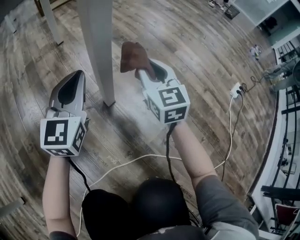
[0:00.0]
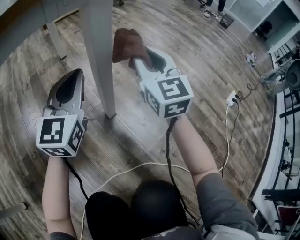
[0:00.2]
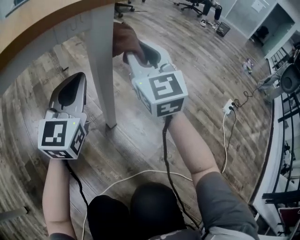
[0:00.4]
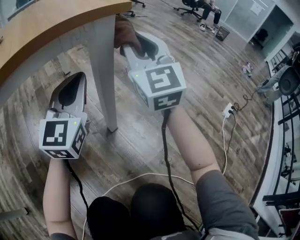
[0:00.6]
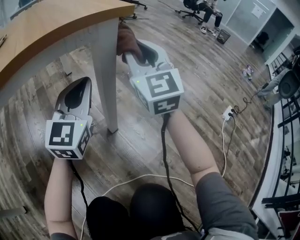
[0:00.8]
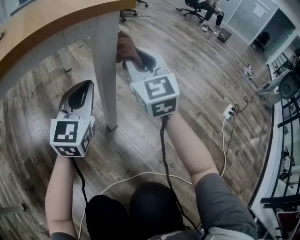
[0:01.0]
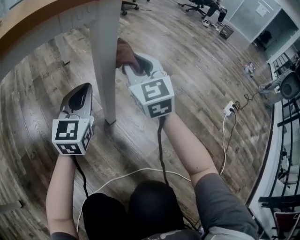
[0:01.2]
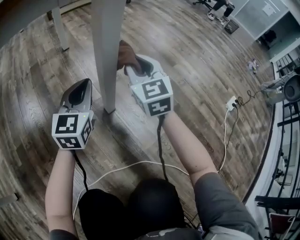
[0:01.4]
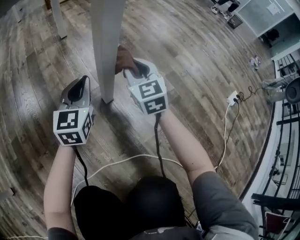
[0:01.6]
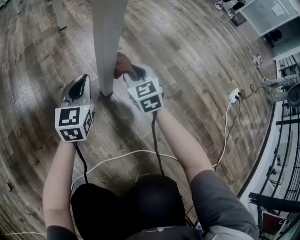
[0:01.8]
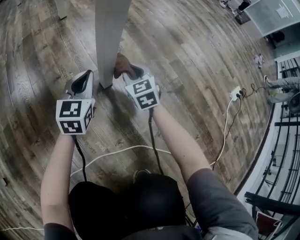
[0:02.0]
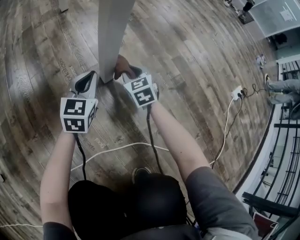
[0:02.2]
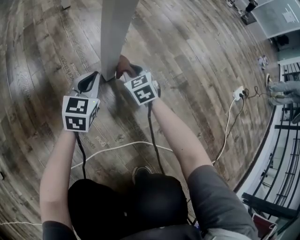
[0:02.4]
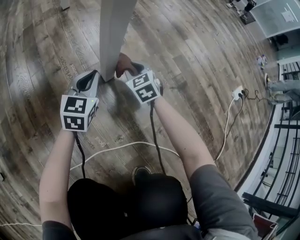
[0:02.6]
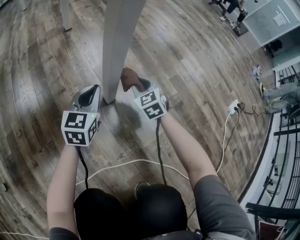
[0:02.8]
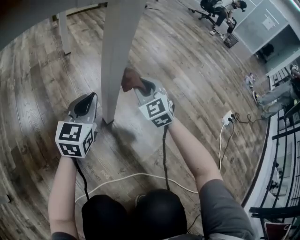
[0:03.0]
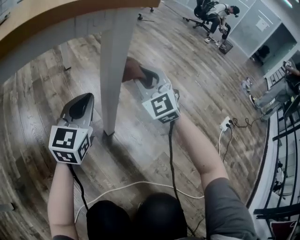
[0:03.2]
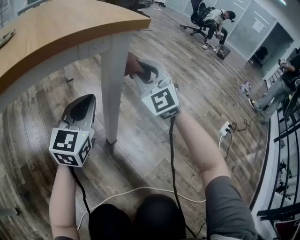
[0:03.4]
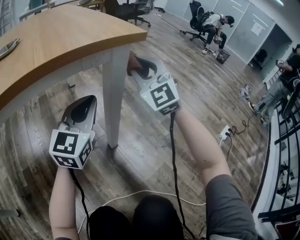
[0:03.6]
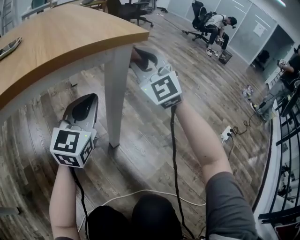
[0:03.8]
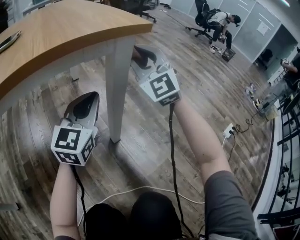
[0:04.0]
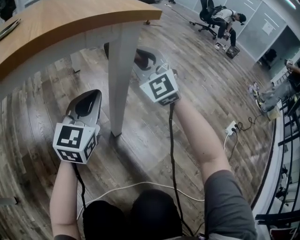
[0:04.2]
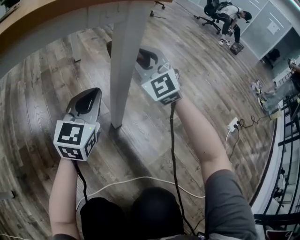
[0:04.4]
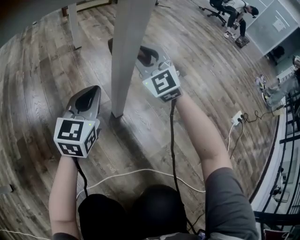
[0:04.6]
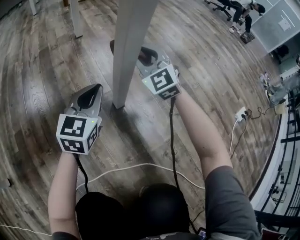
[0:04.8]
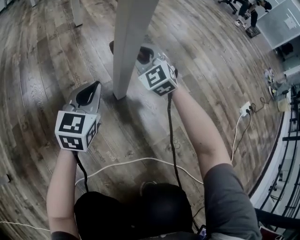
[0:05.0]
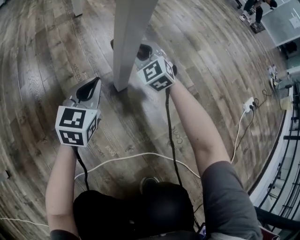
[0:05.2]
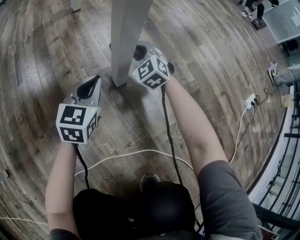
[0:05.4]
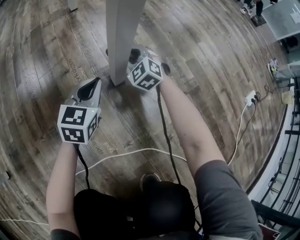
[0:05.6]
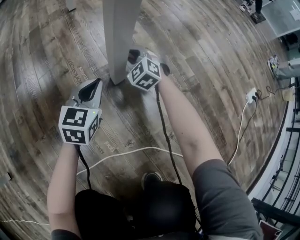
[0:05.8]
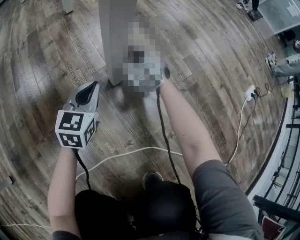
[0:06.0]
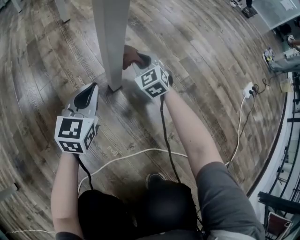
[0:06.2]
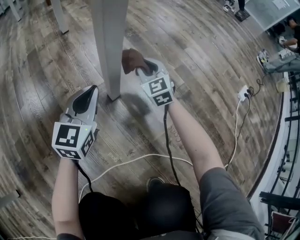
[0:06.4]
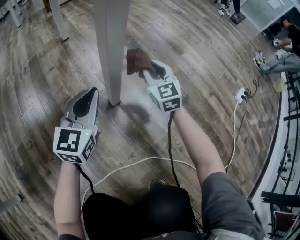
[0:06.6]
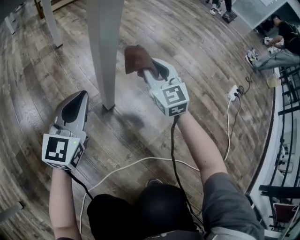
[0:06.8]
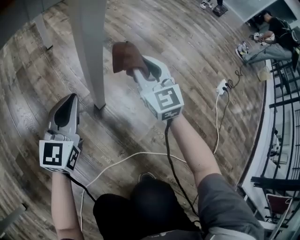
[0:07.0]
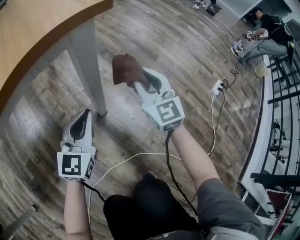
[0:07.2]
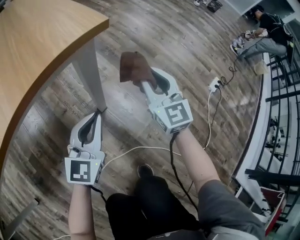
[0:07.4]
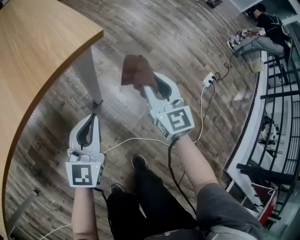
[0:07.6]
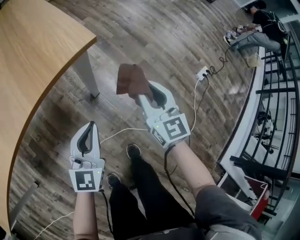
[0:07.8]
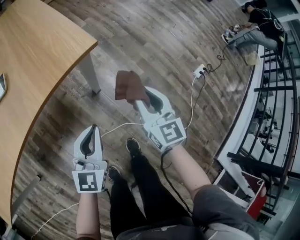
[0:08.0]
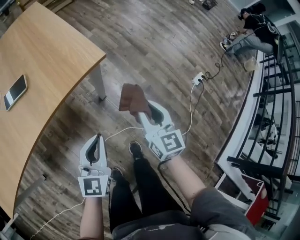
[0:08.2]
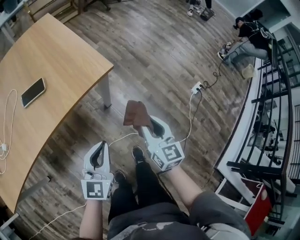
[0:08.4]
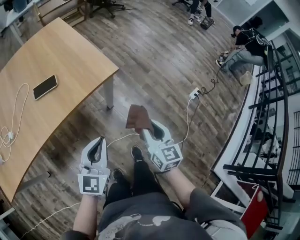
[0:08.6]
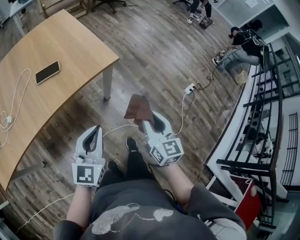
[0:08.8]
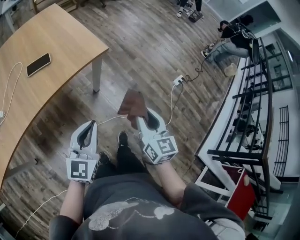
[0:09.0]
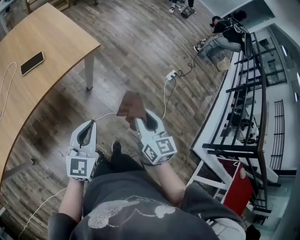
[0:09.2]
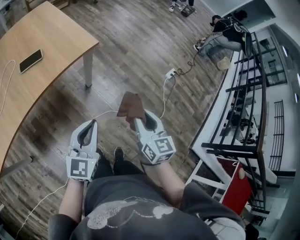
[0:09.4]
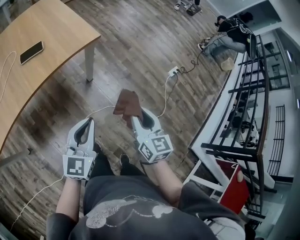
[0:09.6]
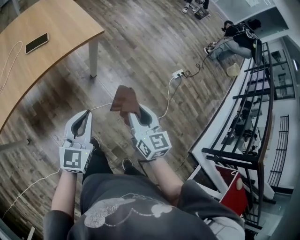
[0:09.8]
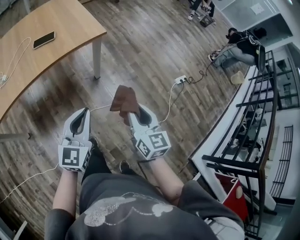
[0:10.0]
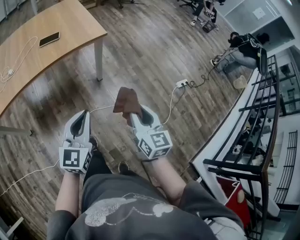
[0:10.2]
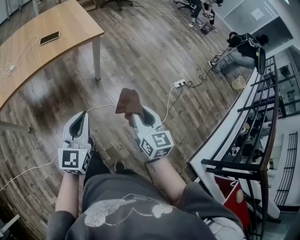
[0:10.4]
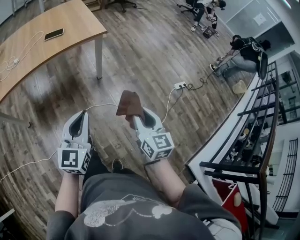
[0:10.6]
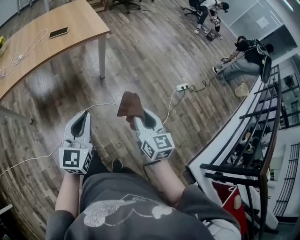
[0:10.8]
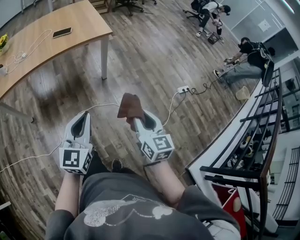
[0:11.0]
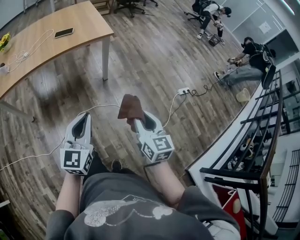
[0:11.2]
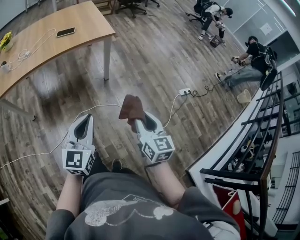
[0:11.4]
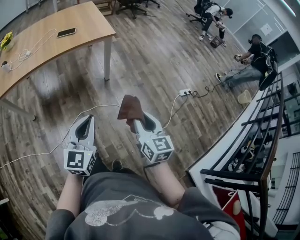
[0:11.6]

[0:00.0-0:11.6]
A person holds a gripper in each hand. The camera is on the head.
0:00.0 to 0:01.4: The right gripper moves to the left, about 5 cm, and travels upward and back again, about 25 cm each way. Meanwhile the left gripper reaches some 15 cm upward, then returns.
0:01.4 to 0:02.8: The left gripper moves downward, about 15 cm; the right gripper moves downward, about 25 cm, and rotates approximately 30 degrees.
0:02.8 to 0:04.4: The right gripper is displaced upward by about 30 cm, and tips its fingers upward by roughly 30 degrees; the left gripper is displaced upward by some 20 cm.
0:04.4 to 0:05.8: The left gripper goes about 25 cm downward, and changes its angle by approximately 20 degrees. The right gripper heads downward, covering roughly 35 cm, and angles its fingers downward, by about 30 degrees.
0:05.8 to 0:07.2: Both grippers move upward, about 30 cm. The right gripper points its fingers approximately 30 degrees further upward.
0:07.2 to 0:08.8: Both grippers move upward and backward, about 50 cm. The right gripper turns by about 20 degrees.
0:08.8 to 0:10.2: The two grippers go approximately 20 cm backward and to the right.
0:10.2 to 0:11.6: Both grippers travel together backward, some 15 cm.

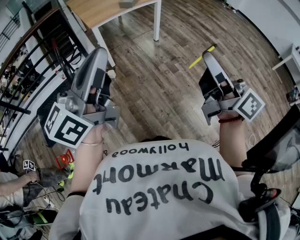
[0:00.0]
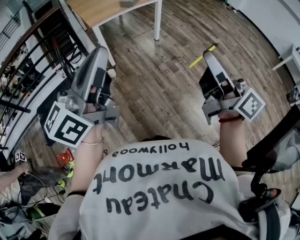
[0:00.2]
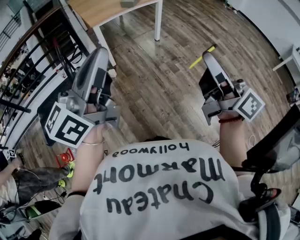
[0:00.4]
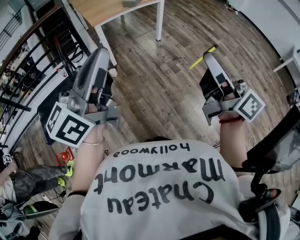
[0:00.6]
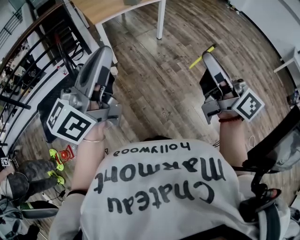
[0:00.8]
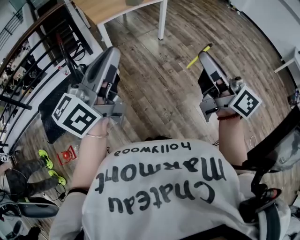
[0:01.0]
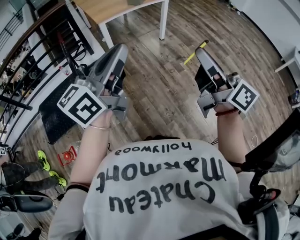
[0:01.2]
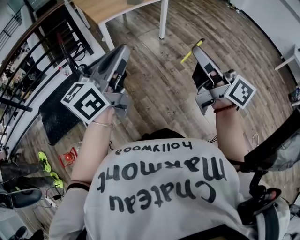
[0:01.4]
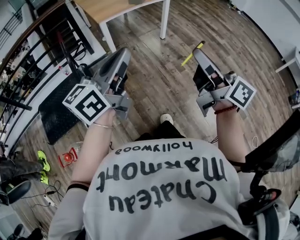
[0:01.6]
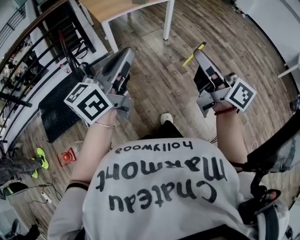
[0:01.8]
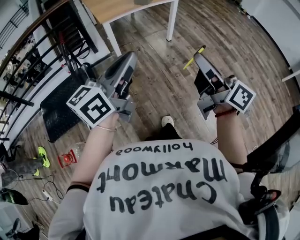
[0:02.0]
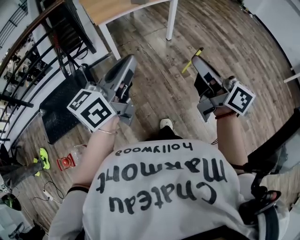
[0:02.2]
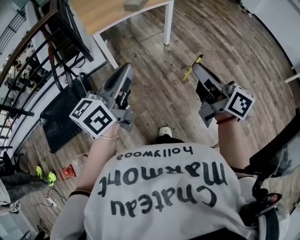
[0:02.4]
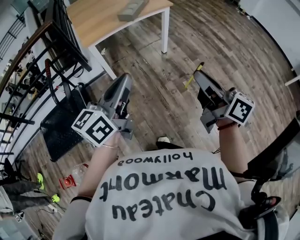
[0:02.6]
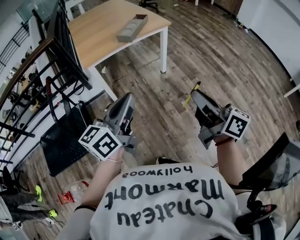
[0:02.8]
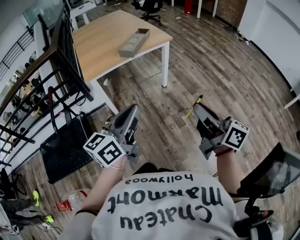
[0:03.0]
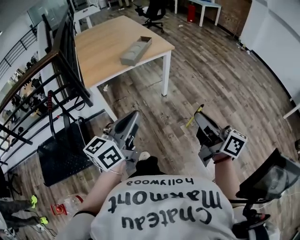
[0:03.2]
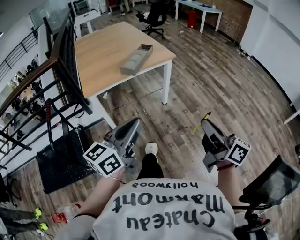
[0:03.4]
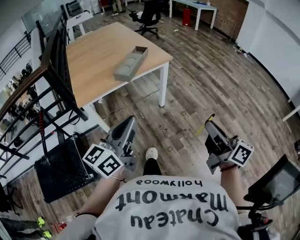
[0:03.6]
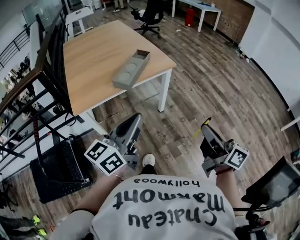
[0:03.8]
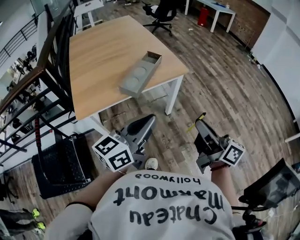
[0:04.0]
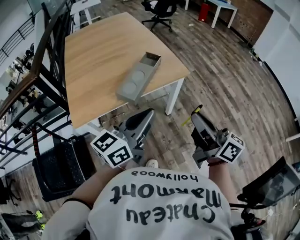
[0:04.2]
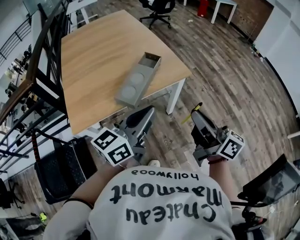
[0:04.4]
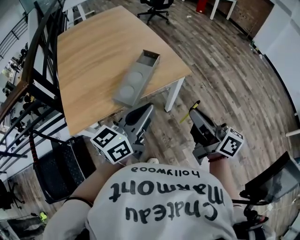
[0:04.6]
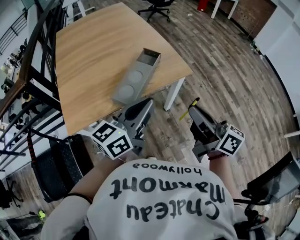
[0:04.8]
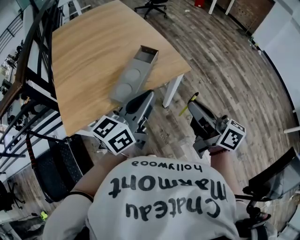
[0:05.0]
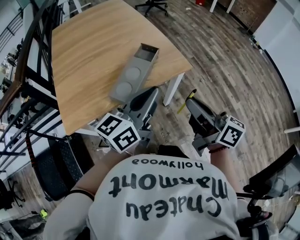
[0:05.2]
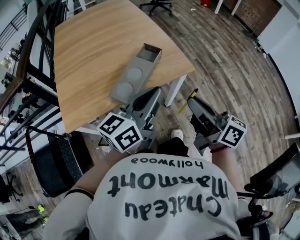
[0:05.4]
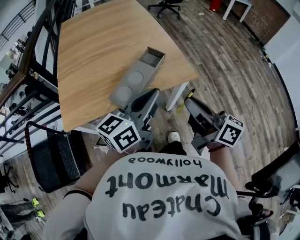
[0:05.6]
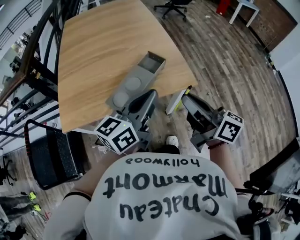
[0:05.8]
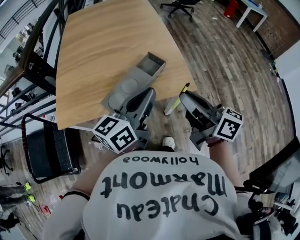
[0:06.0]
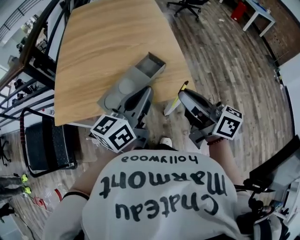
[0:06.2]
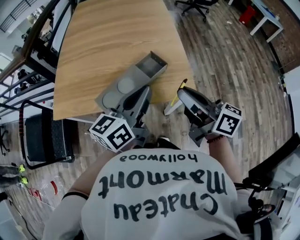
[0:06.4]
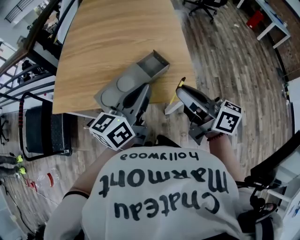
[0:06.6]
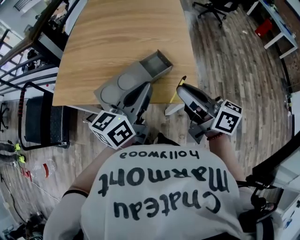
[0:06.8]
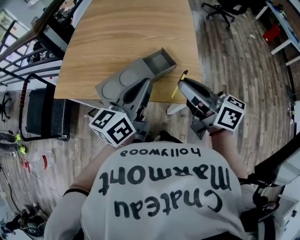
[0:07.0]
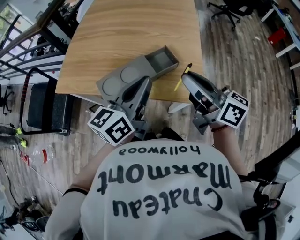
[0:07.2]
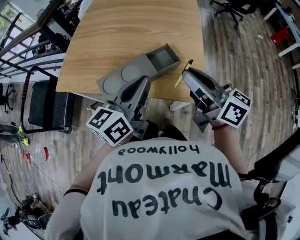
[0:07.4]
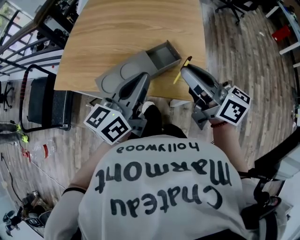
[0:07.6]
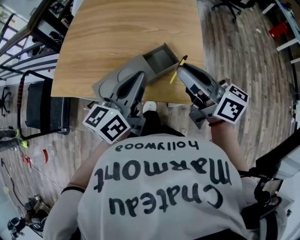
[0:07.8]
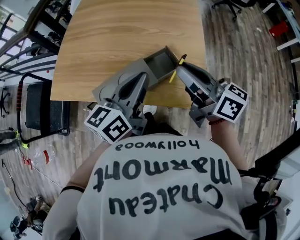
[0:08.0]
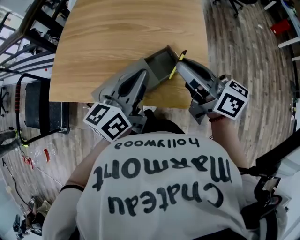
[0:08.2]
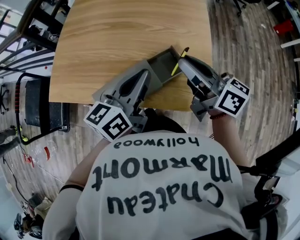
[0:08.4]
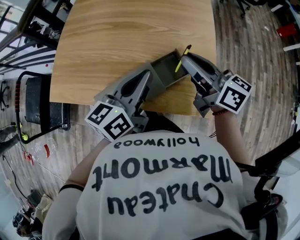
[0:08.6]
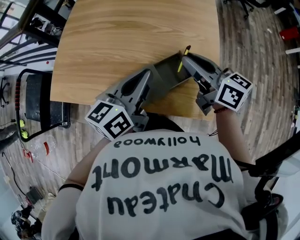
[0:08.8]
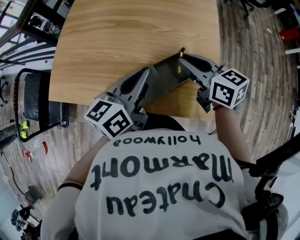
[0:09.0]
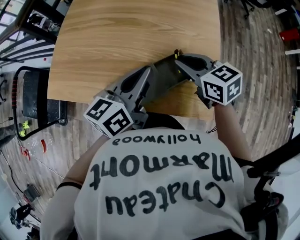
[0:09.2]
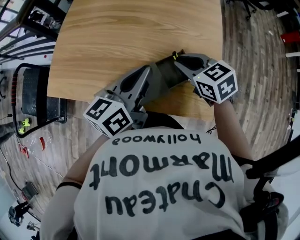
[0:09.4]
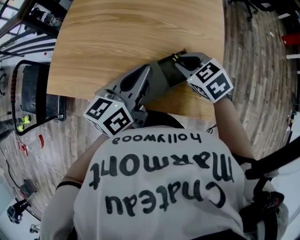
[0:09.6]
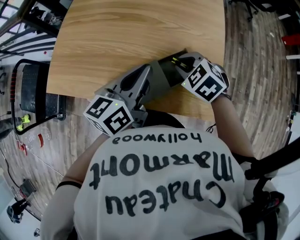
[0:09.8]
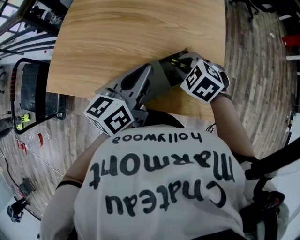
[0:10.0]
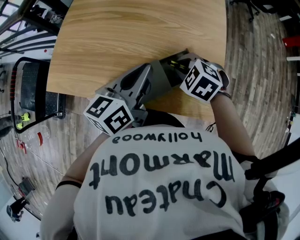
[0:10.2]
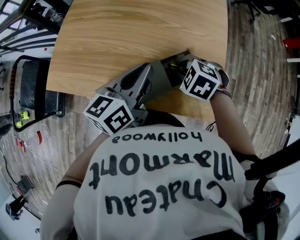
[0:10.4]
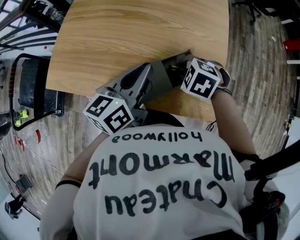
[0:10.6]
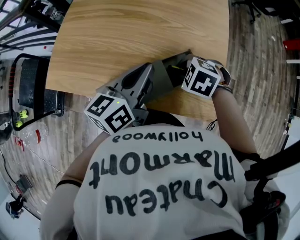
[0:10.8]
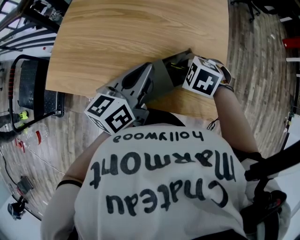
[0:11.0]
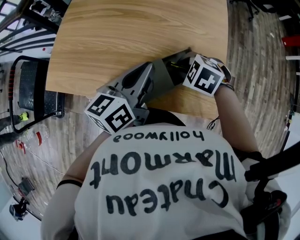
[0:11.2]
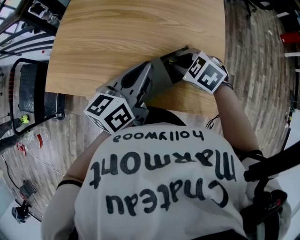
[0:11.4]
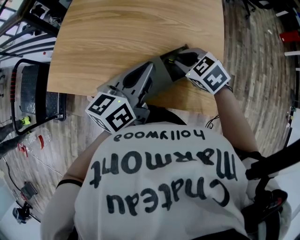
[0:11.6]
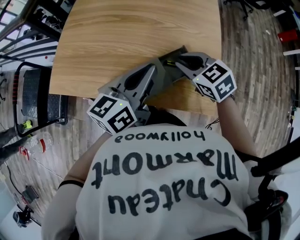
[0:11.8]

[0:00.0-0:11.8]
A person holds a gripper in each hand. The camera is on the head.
0:00.0 to 0:01.4: The right gripper heads to the left, covering approximately 5 cm; the left gripper shifts some 5 cm downward.
0:01.4 to 0:03.0: The two grippers go roughly 30 cm forward and to the right.
0:03.0 to 0:04.4: The pair of grippers is taken forward, about 40 cm.
0:04.4 to 0:06.0: Both grippers travel together forward, some 20 cm. The left gripper changes its angle by about 20 degrees, while the right gripper changes its angle by approximately 20 degrees.
0:06.0 to 0:07.4: The left gripper moves some 5 cm, and swivels about 30 degrees. The right gripper travels forward by roughly 10 cm, and changes its angle by some 20 degrees.
0:07.4 to 0:08.8: The right gripper goes roughly 20 cm forward and downward, while the left gripper moves forward, about 15 cm.
0:08.8 to 0:10.4: The right gripper shifts roughly 15 cm downward, and angles its fingers downward, by about 60 degrees.
0:10.4 to 0:11.8: The right gripper moves upward, about 5 cm, and turns by roughly 40 degrees.
